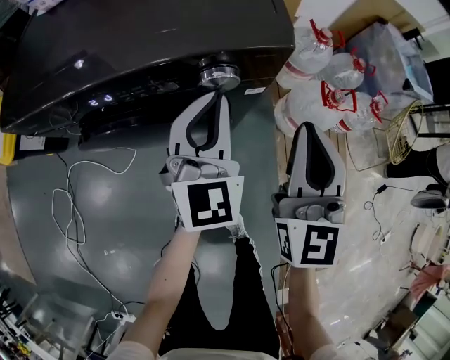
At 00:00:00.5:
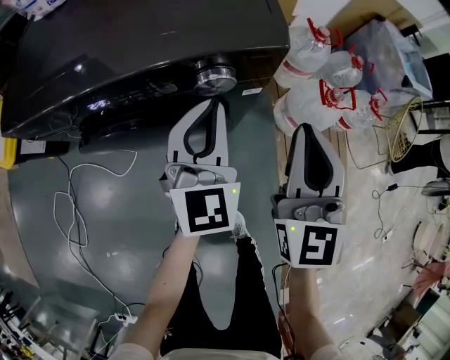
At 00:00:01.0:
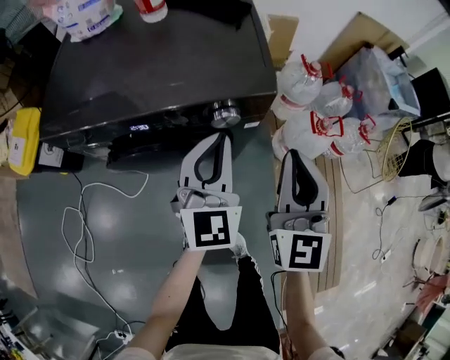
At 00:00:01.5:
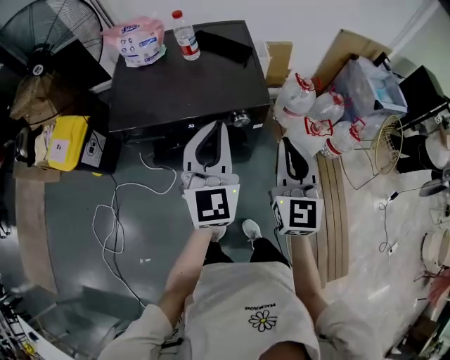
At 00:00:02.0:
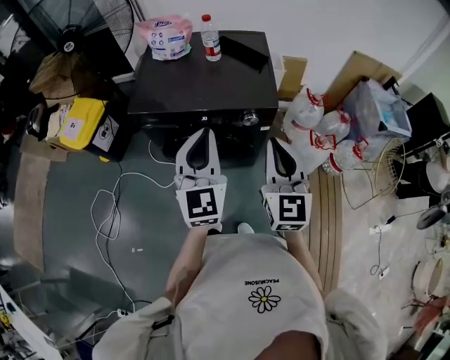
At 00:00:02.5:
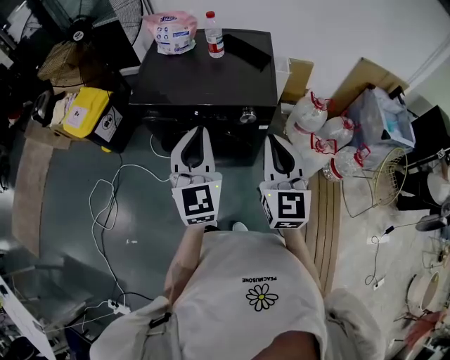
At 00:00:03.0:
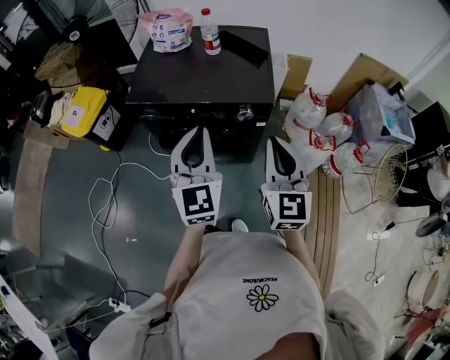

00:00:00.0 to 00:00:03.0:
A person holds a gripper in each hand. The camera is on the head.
00:00:00.0 to 00:00:01.5: The two grippers go roughly 25 cm upward and backward.
00:00:01.5 to 00:00:03.0: The left gripper moves backward, roughly 5 cm.

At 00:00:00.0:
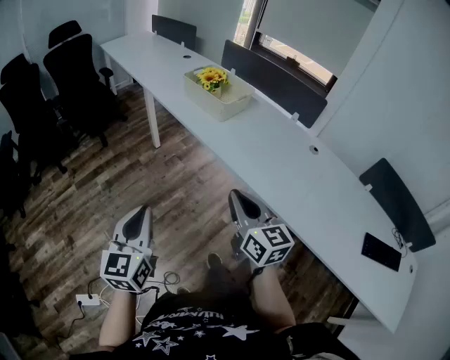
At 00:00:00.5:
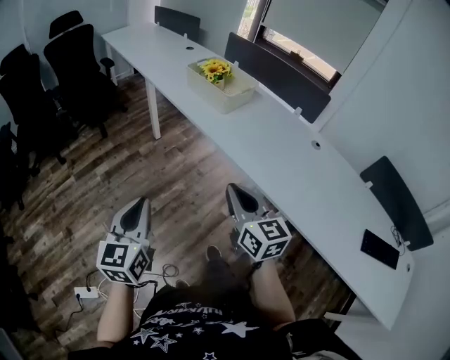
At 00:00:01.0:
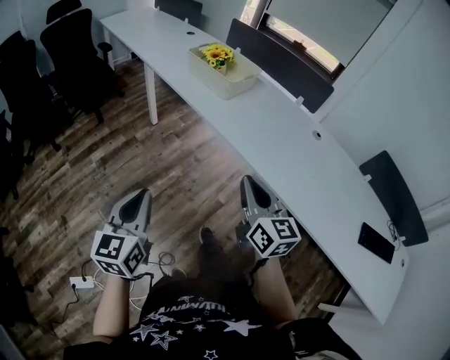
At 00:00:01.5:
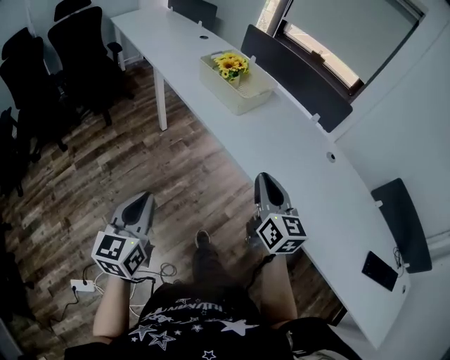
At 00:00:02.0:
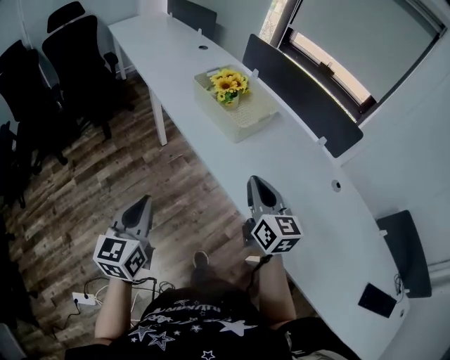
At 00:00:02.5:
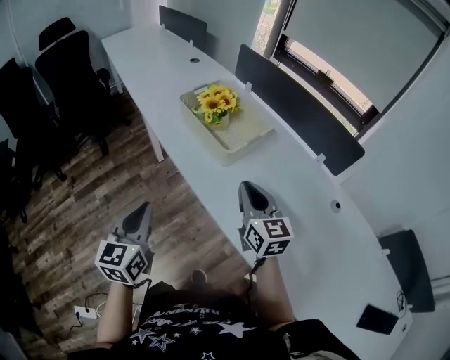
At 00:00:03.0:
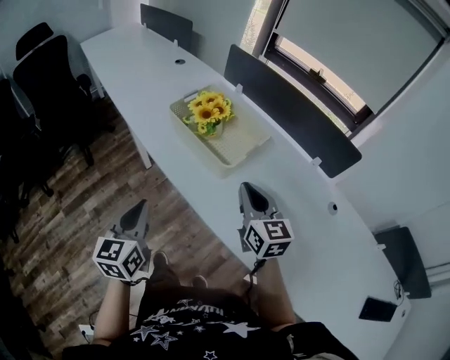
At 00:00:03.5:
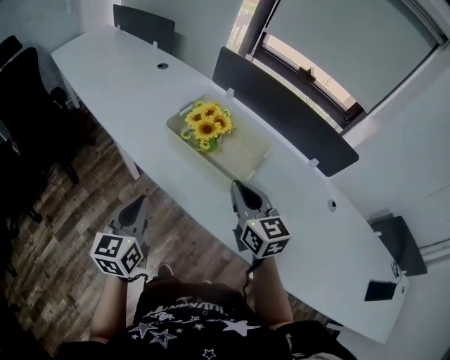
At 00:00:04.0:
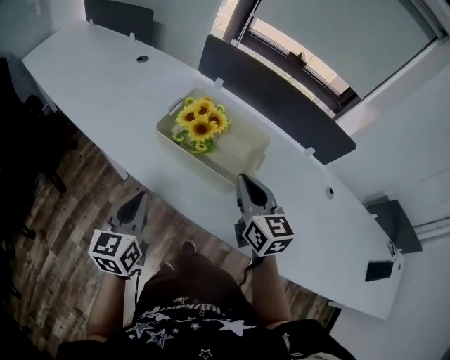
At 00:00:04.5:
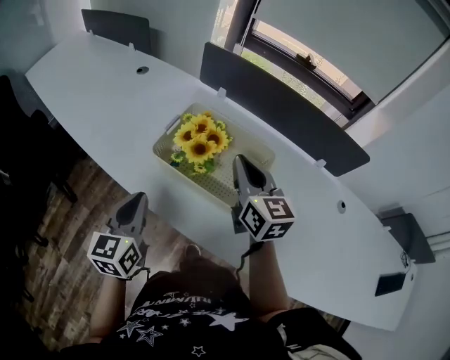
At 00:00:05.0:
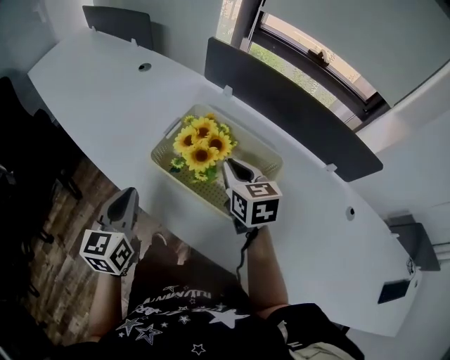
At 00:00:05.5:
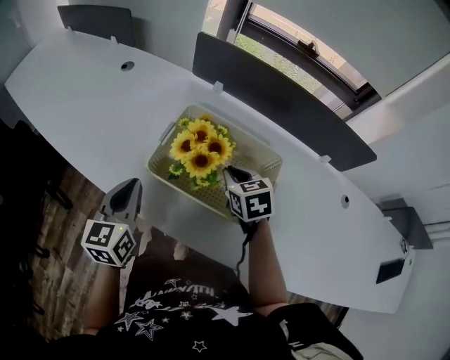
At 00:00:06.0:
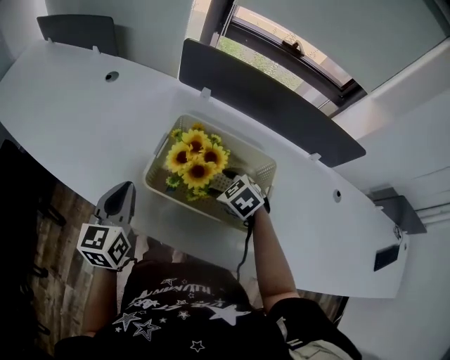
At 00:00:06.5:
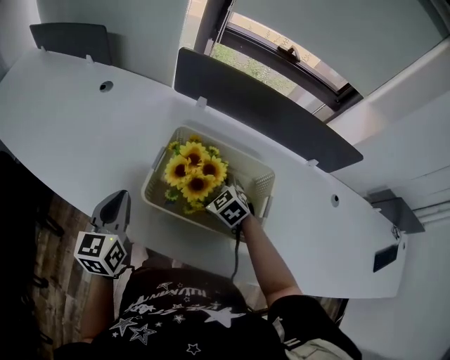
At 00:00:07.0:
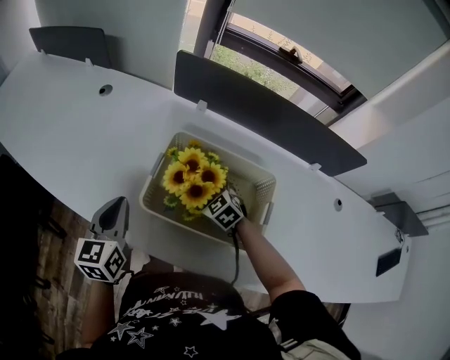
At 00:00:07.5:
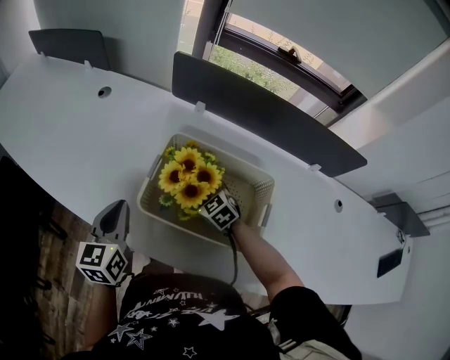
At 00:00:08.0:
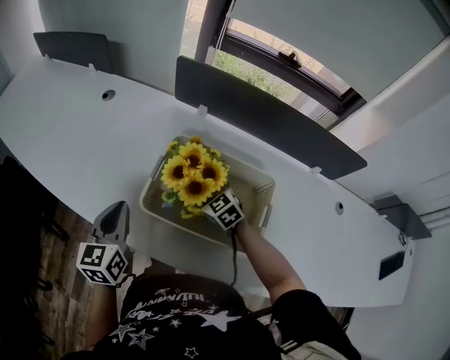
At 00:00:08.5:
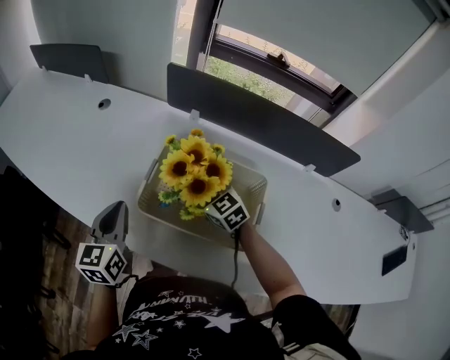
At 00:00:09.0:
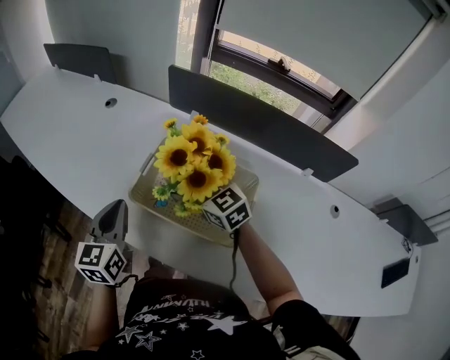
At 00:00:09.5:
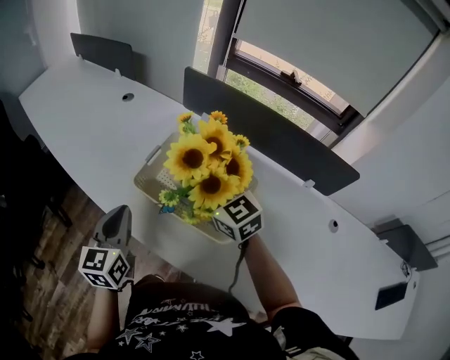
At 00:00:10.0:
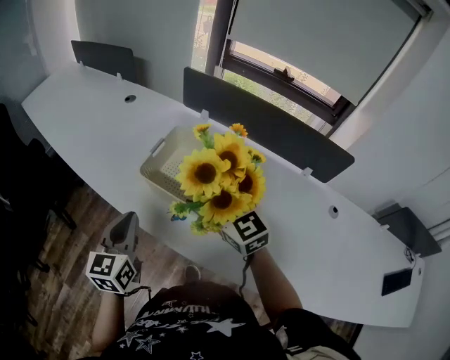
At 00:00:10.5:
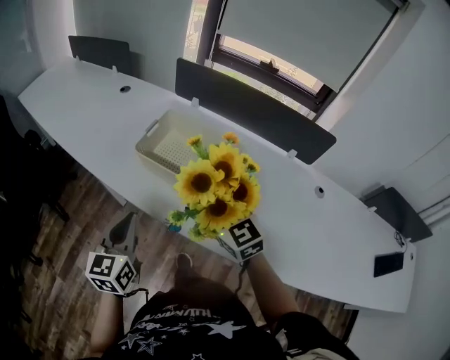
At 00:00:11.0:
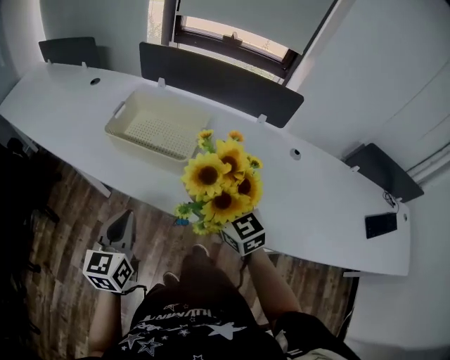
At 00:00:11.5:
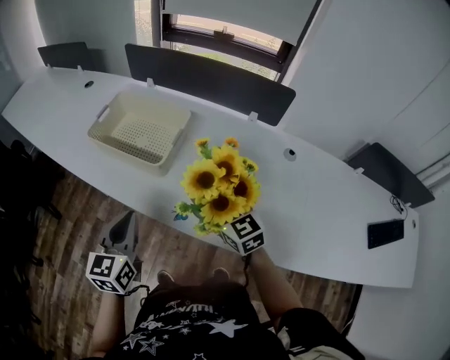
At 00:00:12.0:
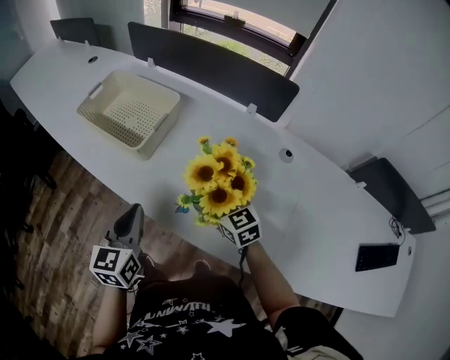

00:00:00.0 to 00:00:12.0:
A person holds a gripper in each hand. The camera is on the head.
00:00:00.0 to 00:00:02.0: Both grippers move forward, roughly 25 cm.
00:00:02.0 to 00:00:04.0: Both grippers travel together forward, some 30 cm. The left gripper swivels roughly 20 degrees.
00:00:04.0 to 00:00:06.0: The right gripper is displaced downward and forward by approximately 25 cm, points its fingers roughly 50 degrees further downward, and opens up. The left gripper is displaced forward by roughly 20 cm.
00:00:06.0 to 00:00:08.0: The right gripper moves forward, roughly 5 cm, turns by some 20 degrees, and opens up.
00:00:08.0 to 00:00:10.0: The left gripper is displaced backward by roughly 15 cm. The right gripper is displaced upward and backward by some 25 cm, and swivels some 30 degrees.
00:00:10.0 to 00:00:12.0: The left gripper travels to the right and backward by some 35 cm, while the right gripper shifts approximately 40 cm to the right, backward and downward.

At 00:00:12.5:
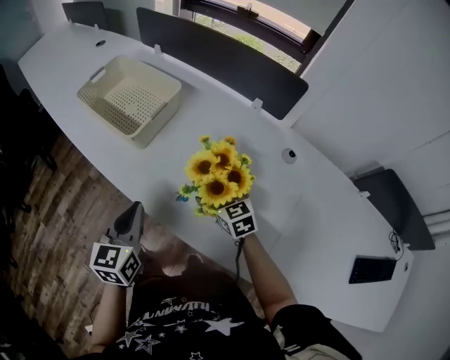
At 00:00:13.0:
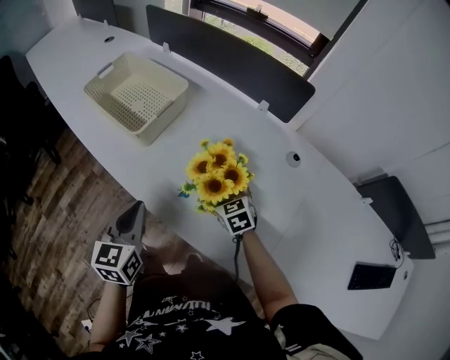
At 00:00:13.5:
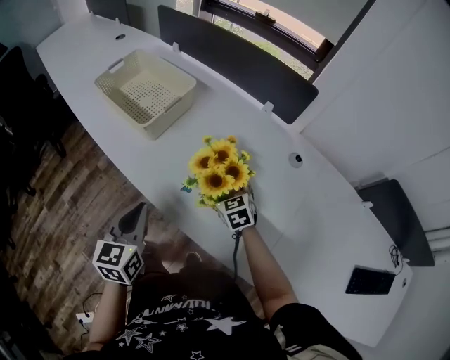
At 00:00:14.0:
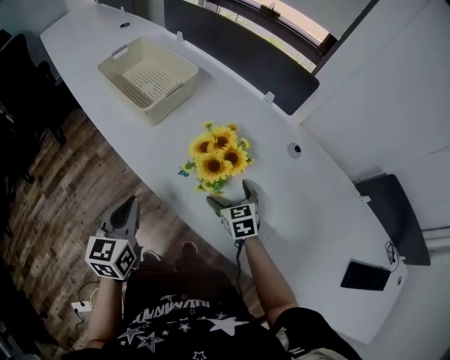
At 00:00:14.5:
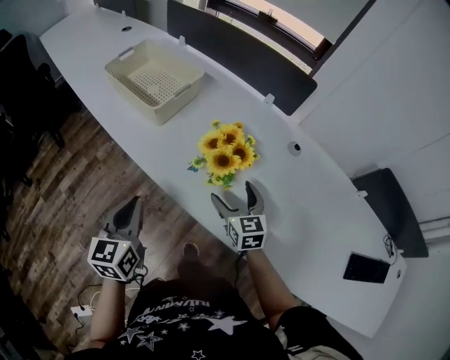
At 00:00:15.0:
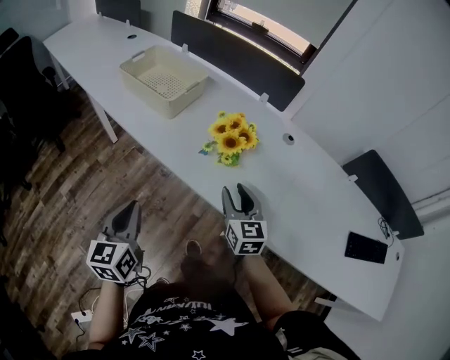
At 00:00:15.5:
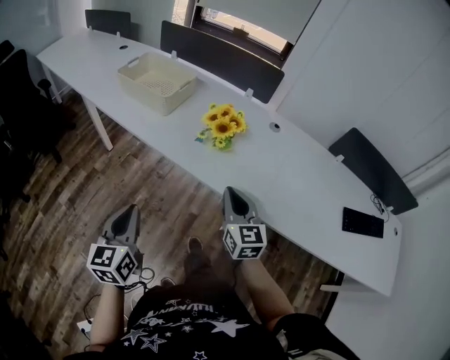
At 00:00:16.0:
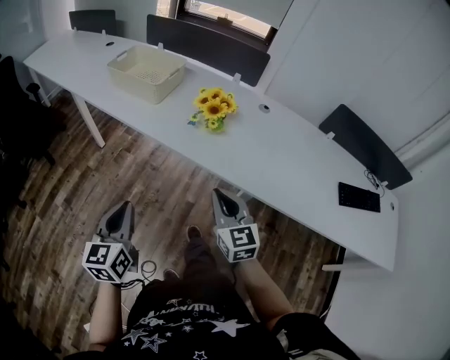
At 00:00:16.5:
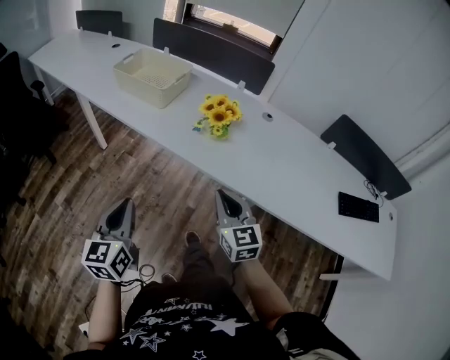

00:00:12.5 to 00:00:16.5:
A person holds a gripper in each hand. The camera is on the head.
00:00:12.5 to 00:00:14.5: Both grippers travel together backward, approximately 10 cm.
00:00:14.5 to 00:00:16.5: Both grippers travel together backward, about 25 cm. The right gripper closes.

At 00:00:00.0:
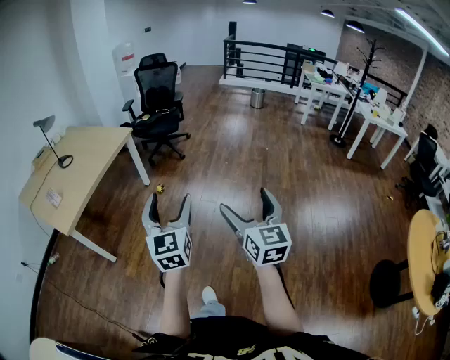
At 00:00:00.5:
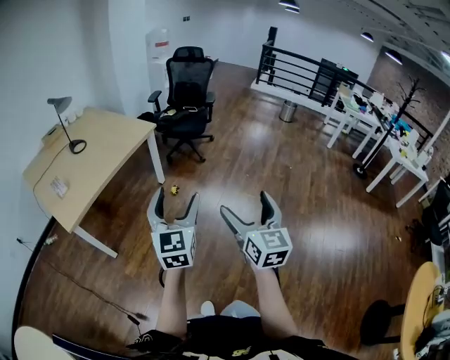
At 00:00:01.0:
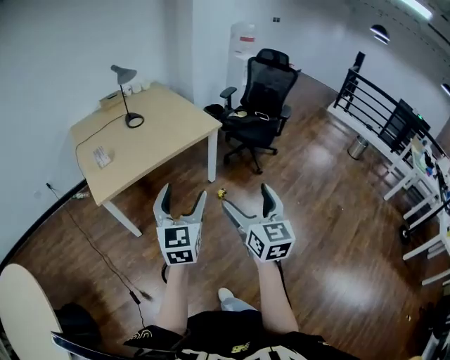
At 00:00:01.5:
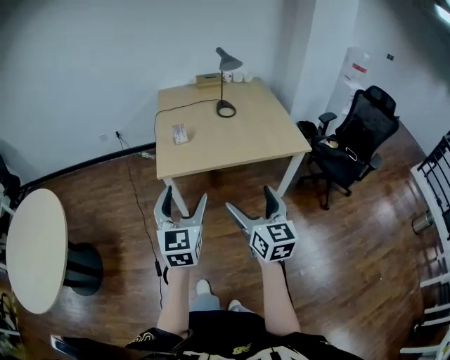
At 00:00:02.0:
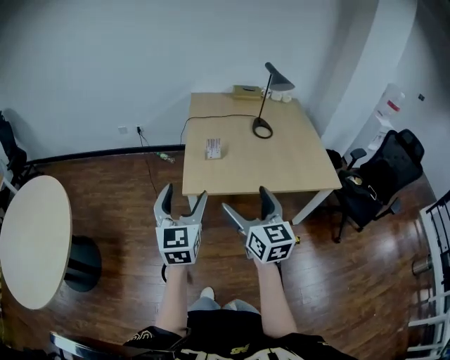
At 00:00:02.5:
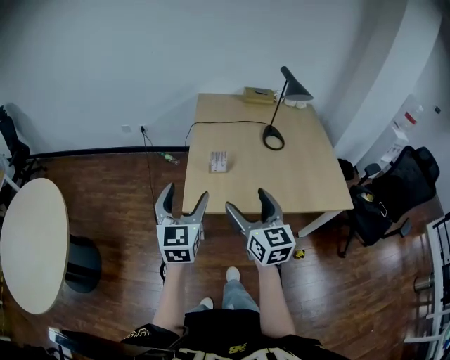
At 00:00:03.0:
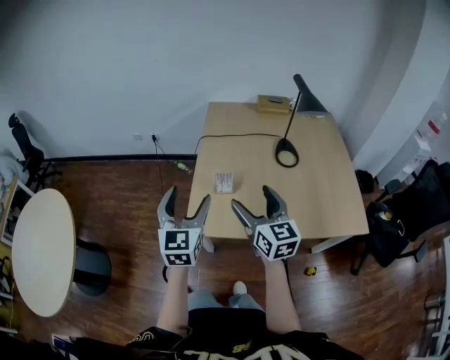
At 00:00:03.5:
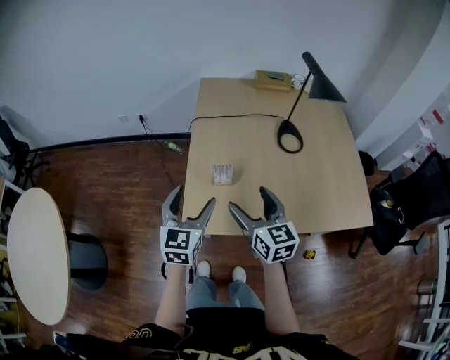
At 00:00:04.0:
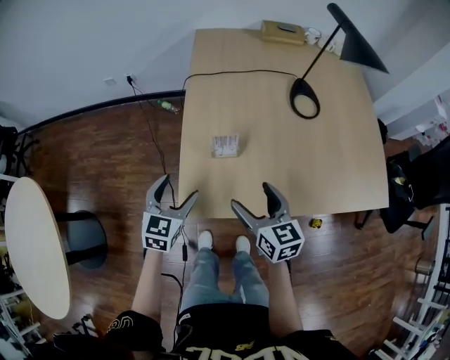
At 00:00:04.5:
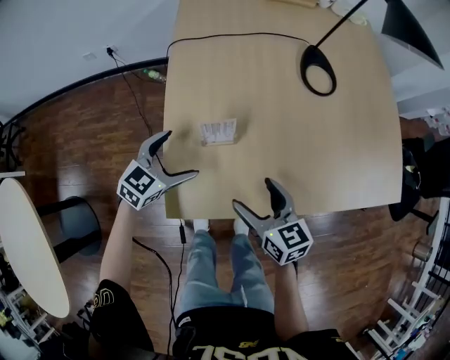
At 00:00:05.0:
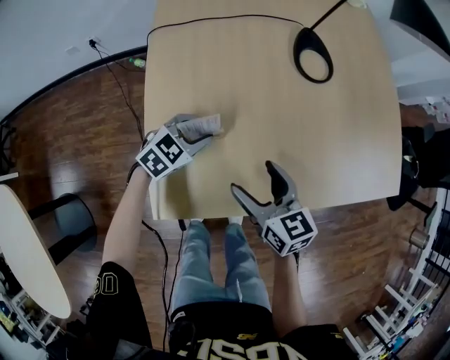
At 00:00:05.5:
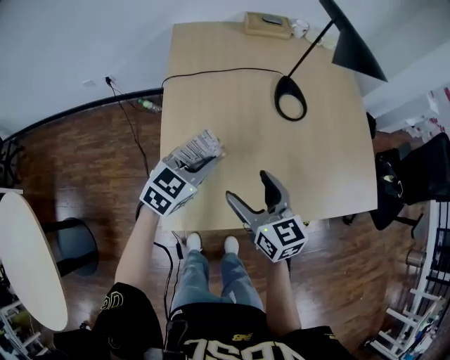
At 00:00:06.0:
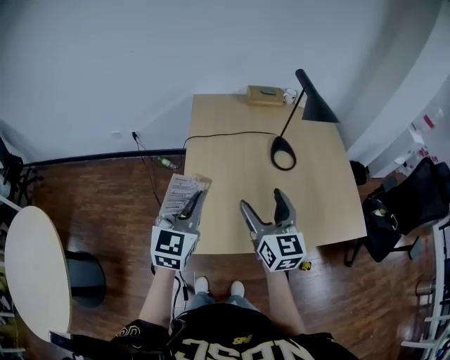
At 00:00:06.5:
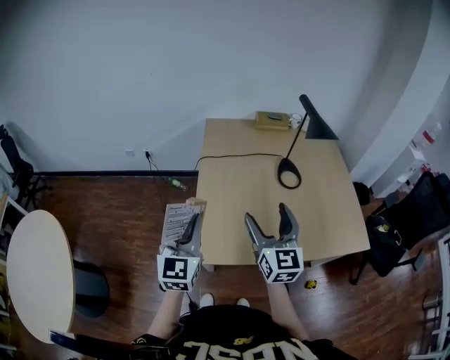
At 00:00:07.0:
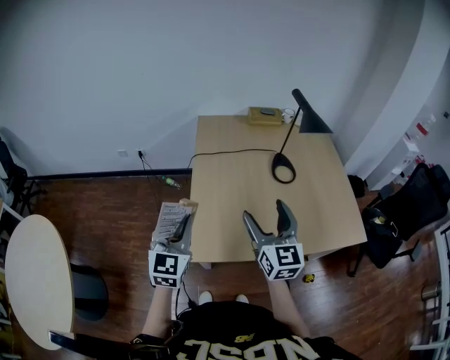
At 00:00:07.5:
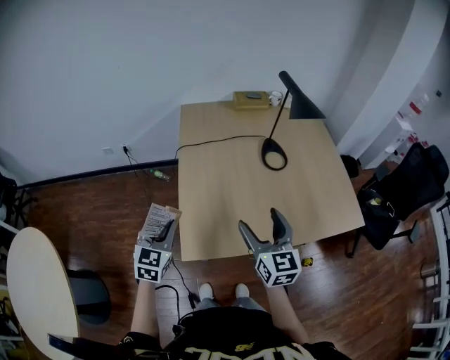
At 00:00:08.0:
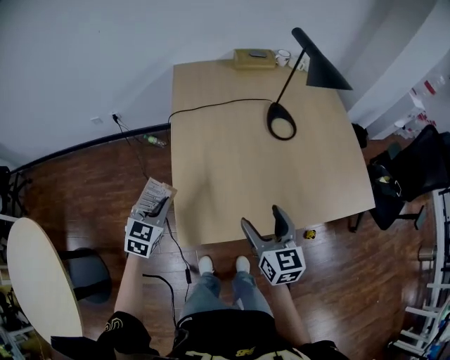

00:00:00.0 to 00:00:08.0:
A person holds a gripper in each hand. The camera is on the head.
00:00:00.0 to 00:00:02.0: Both grippers are carried about 70 cm. The right gripper swivels about 70 degrees. Meanwhile the left gripper rotates about 60 degrees.
00:00:02.0 to 00:00:04.0: The grippers both shift forward and downward by approximately 40 cm. The right gripper swivels approximately 20 degrees; the left gripper swivels some 30 degrees.
00:00:04.0 to 00:00:06.0: Both grippers move upward, some 20 cm. The left gripper closes up, while the right gripper changes its angle by approximately 20 degrees.
00:00:06.0 to 00:00:08.0: The left gripper goes some 20 cm downward and to the left, and rotates some 20 degrees. Meanwhile the right gripper shifts approximately 10 cm downward.
